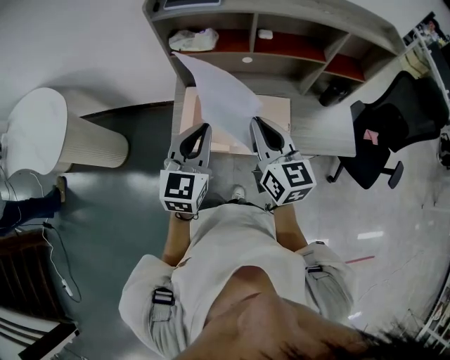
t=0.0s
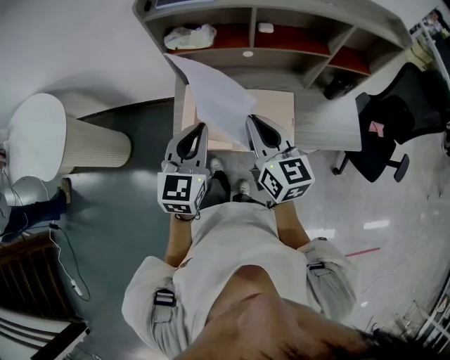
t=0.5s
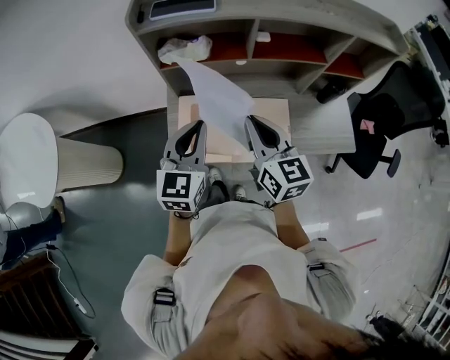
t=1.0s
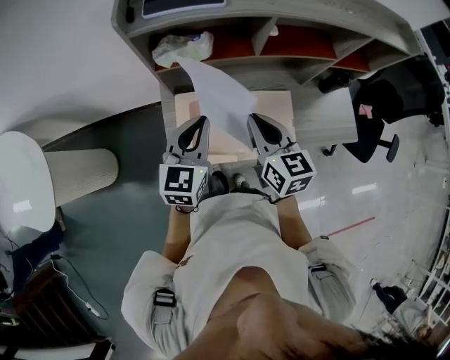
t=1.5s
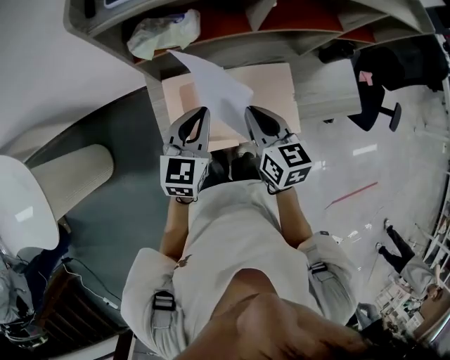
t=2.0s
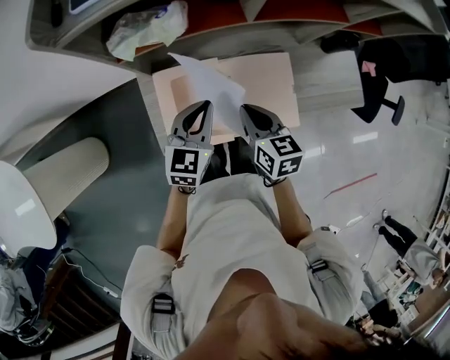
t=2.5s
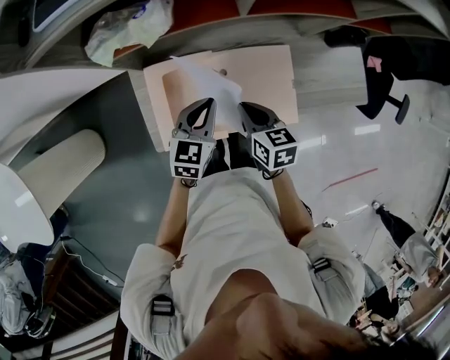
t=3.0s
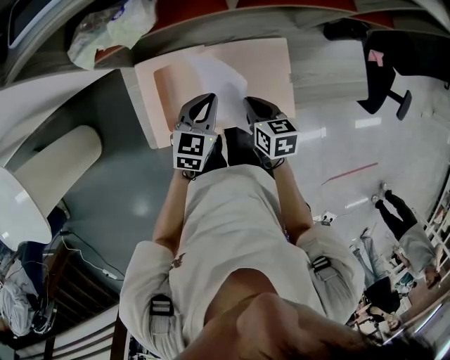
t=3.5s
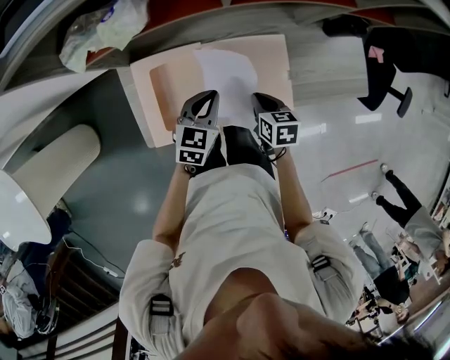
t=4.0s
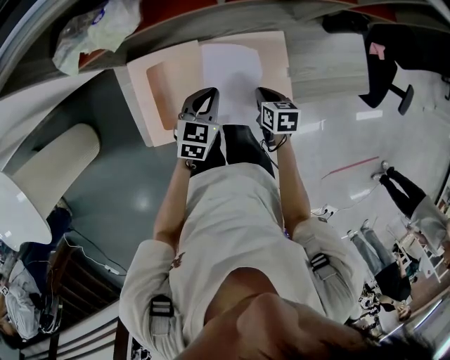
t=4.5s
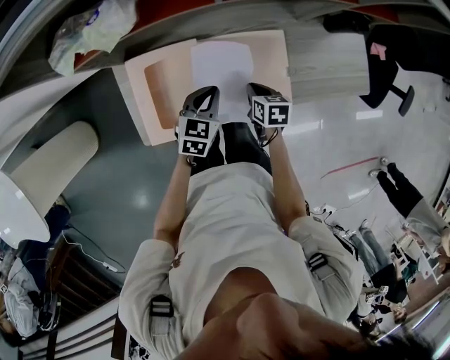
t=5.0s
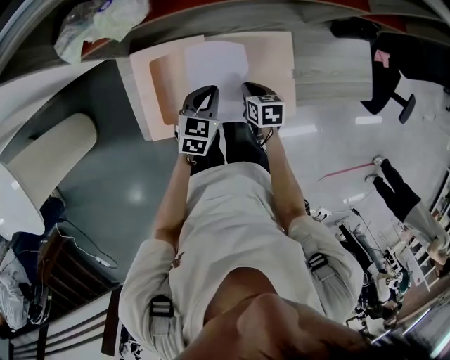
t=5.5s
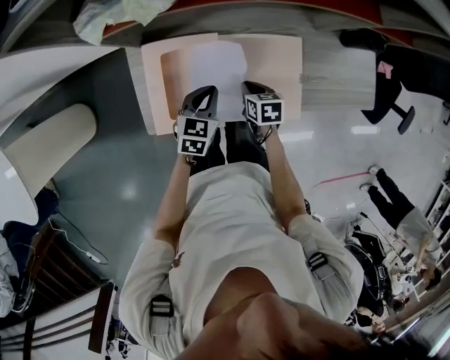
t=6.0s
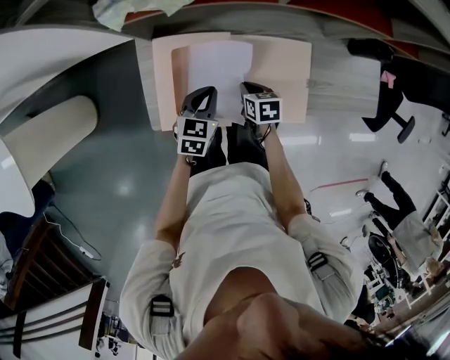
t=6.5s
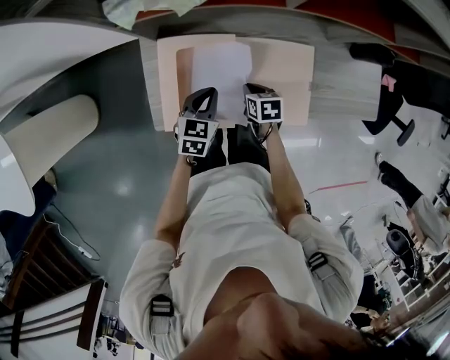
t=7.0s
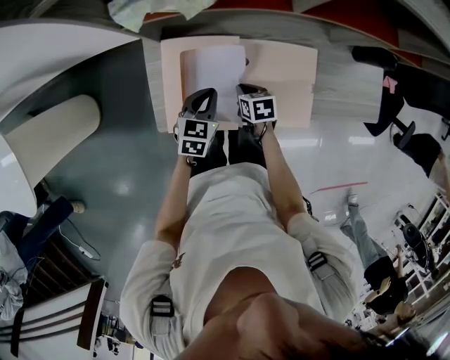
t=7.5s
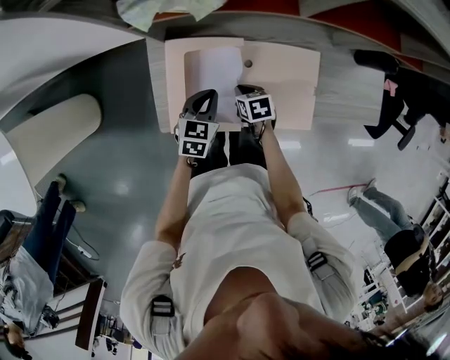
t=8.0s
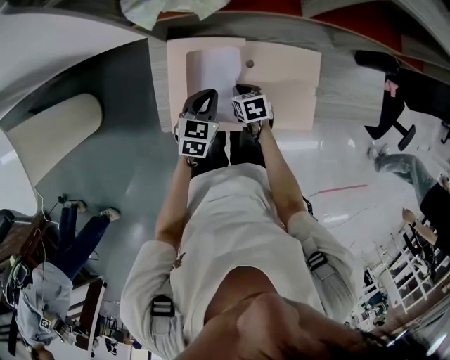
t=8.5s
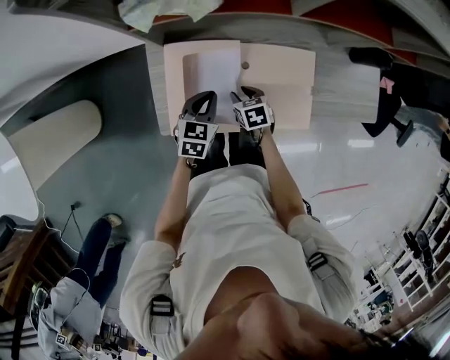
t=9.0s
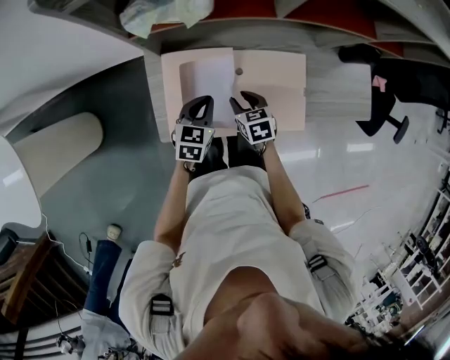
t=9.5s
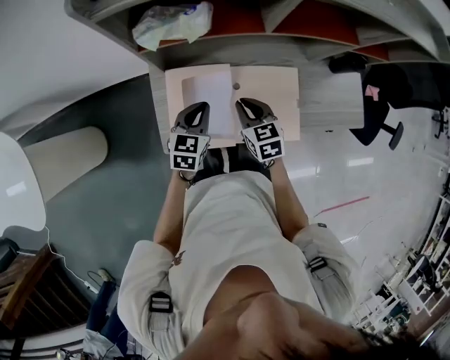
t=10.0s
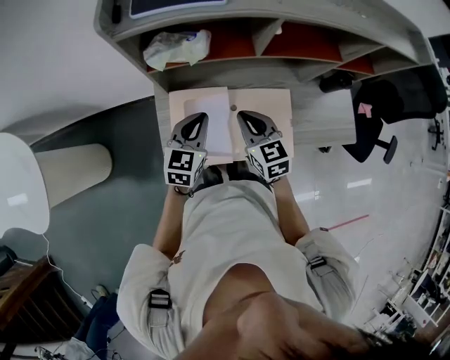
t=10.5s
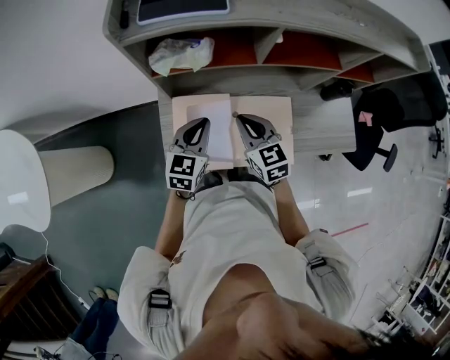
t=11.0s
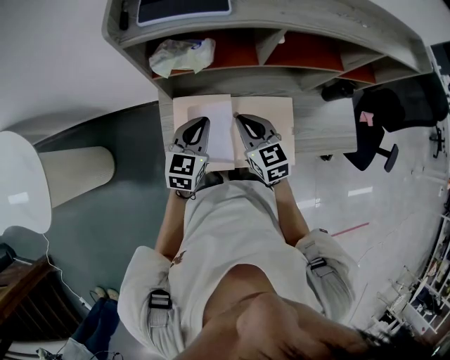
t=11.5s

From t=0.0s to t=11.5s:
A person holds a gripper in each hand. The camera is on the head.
From t=0.0s to t=2.0s: The right gripper travels downward, forward and to the left by about 20 cm, and swivels some 20 degrees, while the left gripper heads forward and downward, covering roughly 25 cm, and turns by approximately 20 degrees.
From t=2.0s to t=4.0s: The two grippers go about 25 cm downward and to the right. The right gripper turns by approximately 30 degrees.
From t=4.0s to t=6.0s: The left gripper shifts by roughly 5 cm, while the right gripper goes some 10 cm downward and to the left.
From t=6.0s to t=7.5s: Both grippers travel together to the left, roughly 5 cm.
From t=7.5s to t=9.5s: The right gripper heads upward, covering about 5 cm, and opens its fingers.
From t=9.5s to t=11.5s: The two grippers go some 20 cm upward. The right gripper swivels about 30 degrees, and closes up.

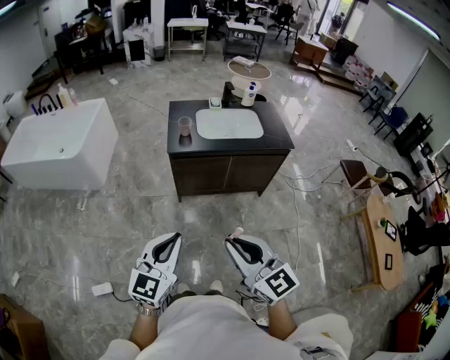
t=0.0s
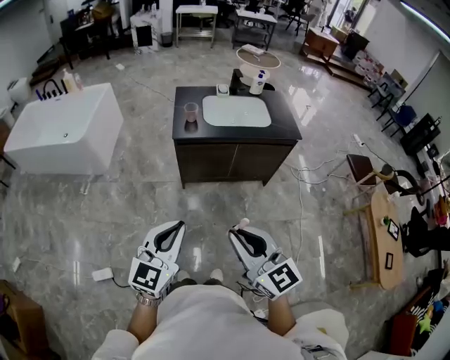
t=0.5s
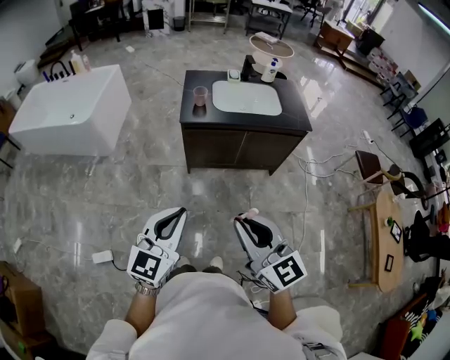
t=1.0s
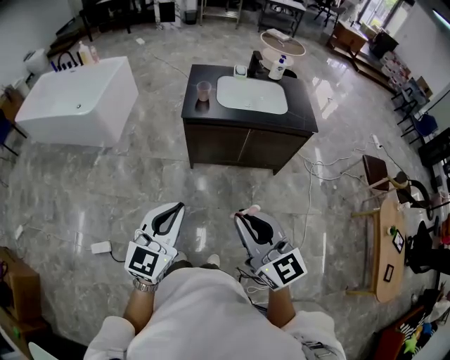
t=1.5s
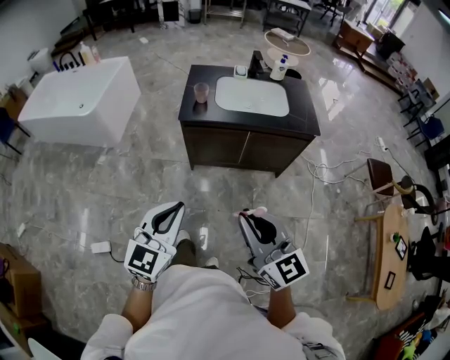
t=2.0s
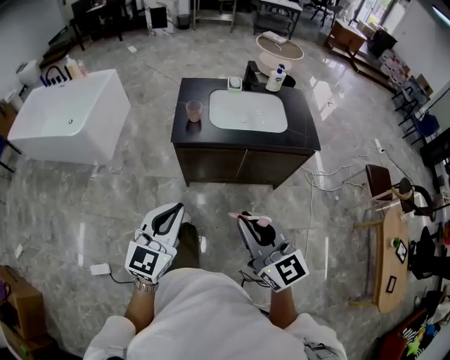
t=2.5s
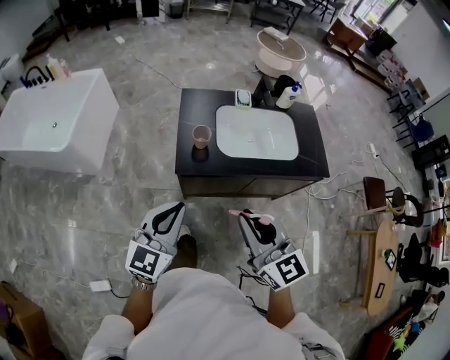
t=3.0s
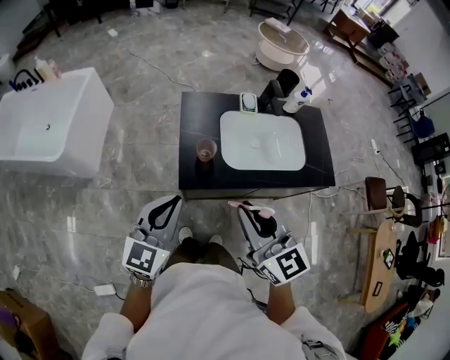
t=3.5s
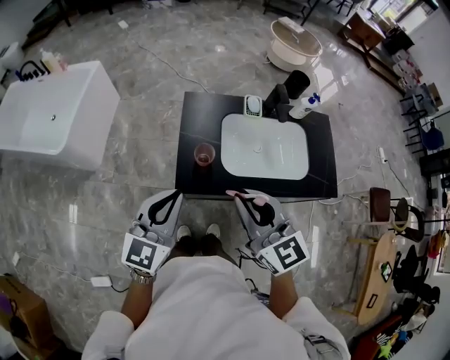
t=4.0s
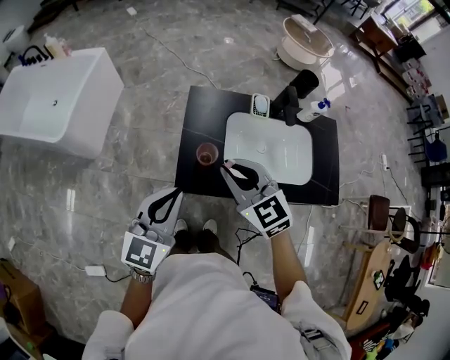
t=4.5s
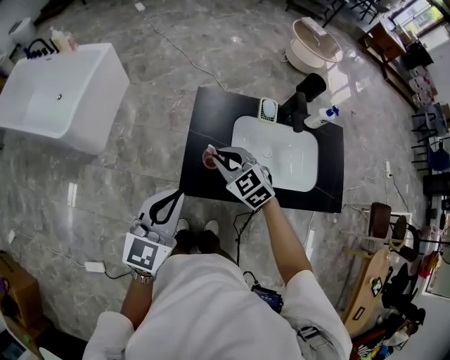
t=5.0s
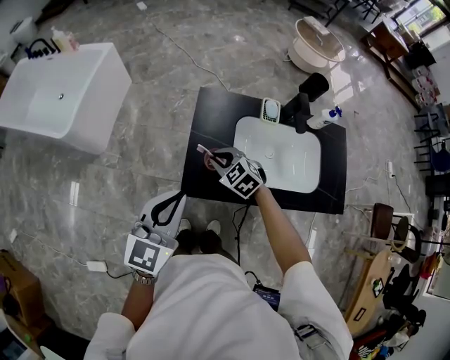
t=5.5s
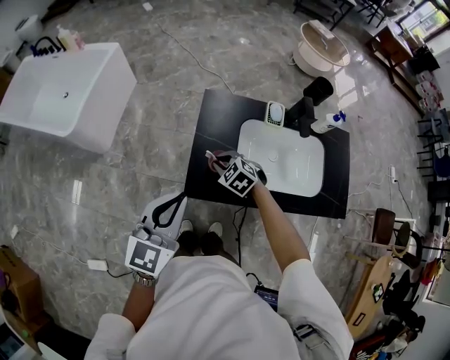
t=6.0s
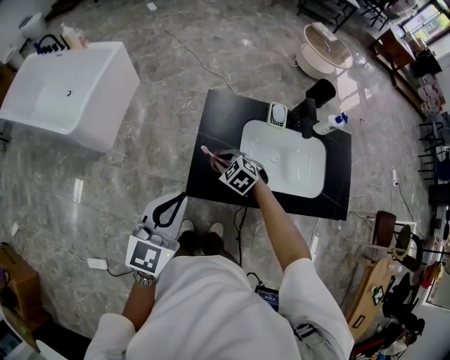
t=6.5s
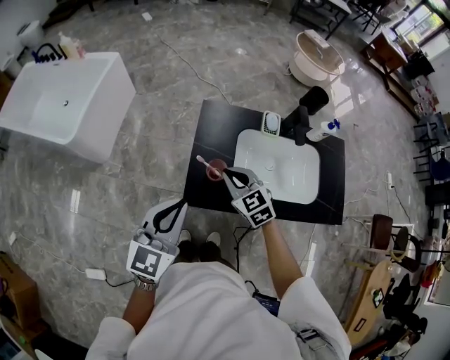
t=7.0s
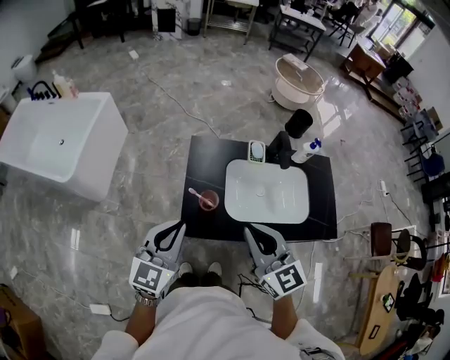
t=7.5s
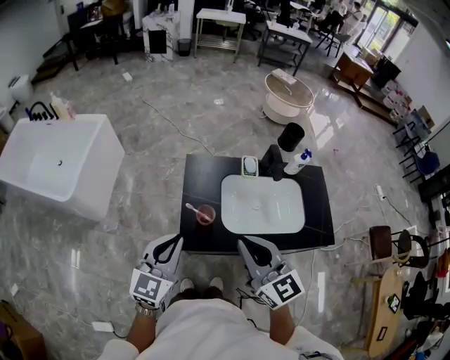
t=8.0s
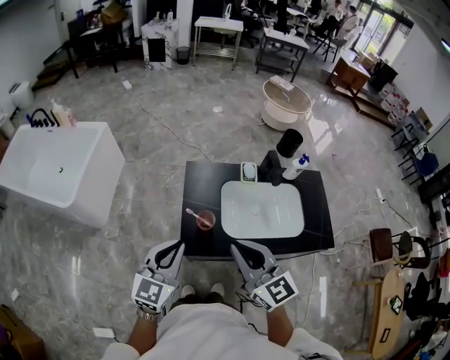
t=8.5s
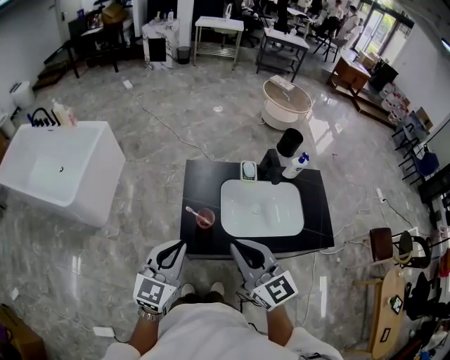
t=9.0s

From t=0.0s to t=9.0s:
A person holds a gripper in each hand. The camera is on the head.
From t=0.0s to t=2.0s: The grippers both shift to the right and forward by approximately 10 cm.
From t=2.0s to t=4.5s: Both grippers are carried forward, roughly 60 cm. The right gripper rotates about 30 degrees.
From t=4.5s to t=7.0s: The right gripper shifts roughly 15 cm downward and forward.
From t=7.0s to t=9.0s: The right gripper moves upward and backward, some 25 cm, and turns by about 30 degrees.

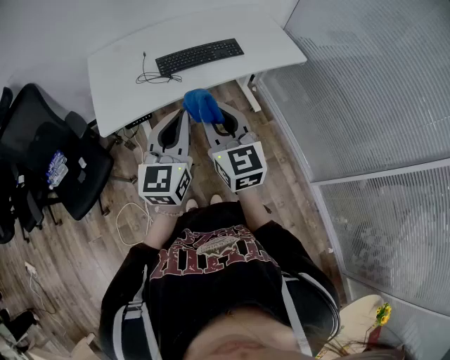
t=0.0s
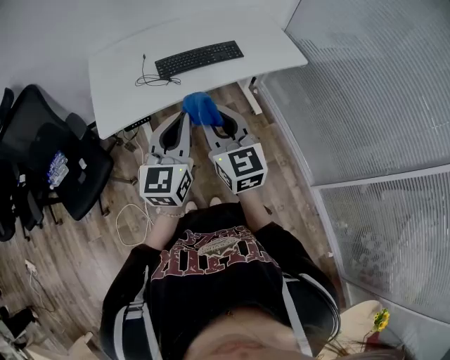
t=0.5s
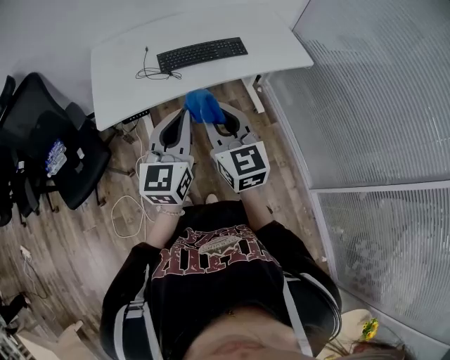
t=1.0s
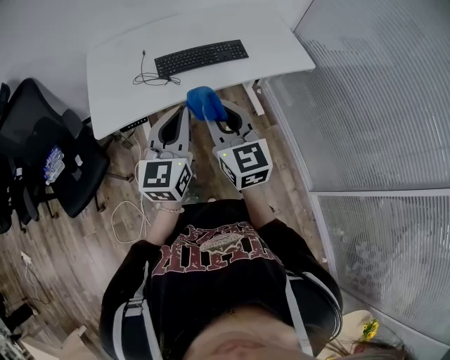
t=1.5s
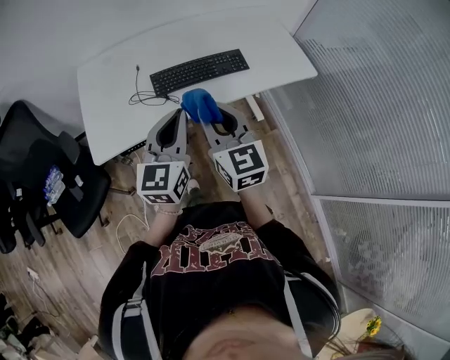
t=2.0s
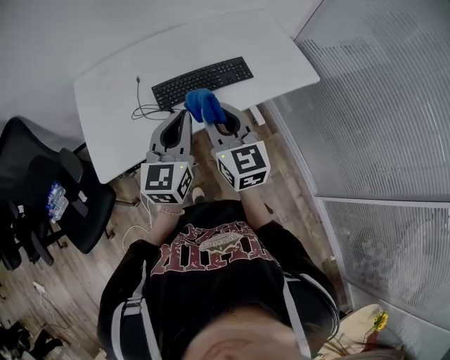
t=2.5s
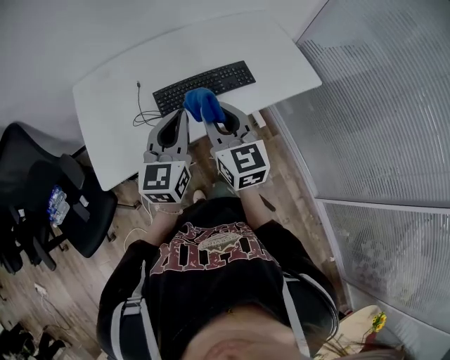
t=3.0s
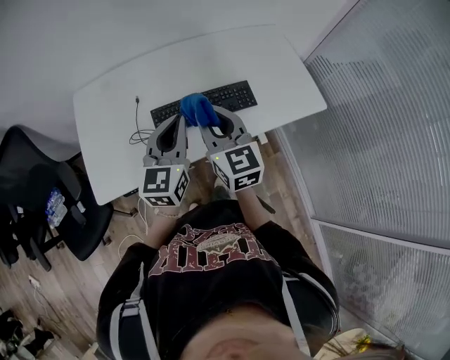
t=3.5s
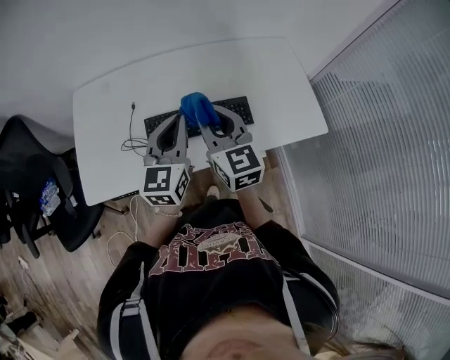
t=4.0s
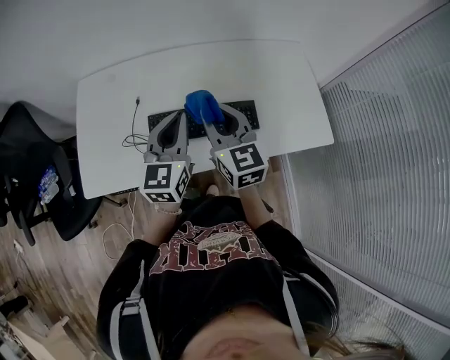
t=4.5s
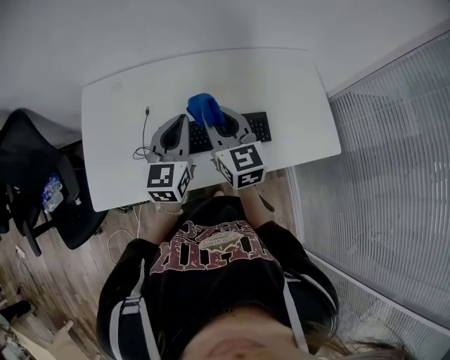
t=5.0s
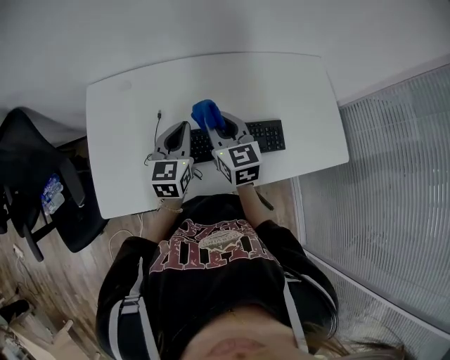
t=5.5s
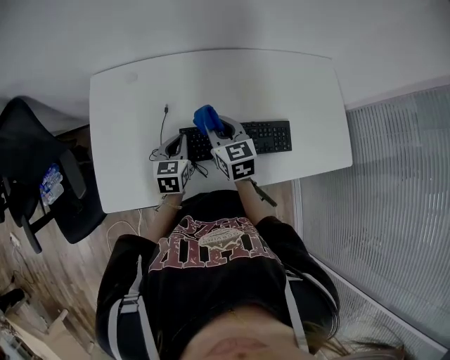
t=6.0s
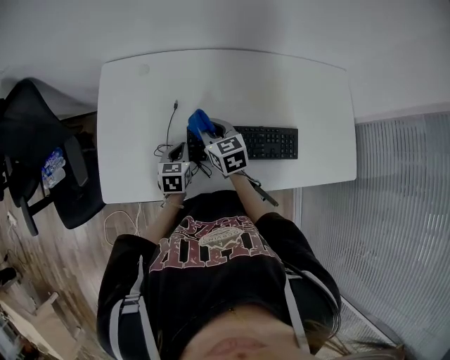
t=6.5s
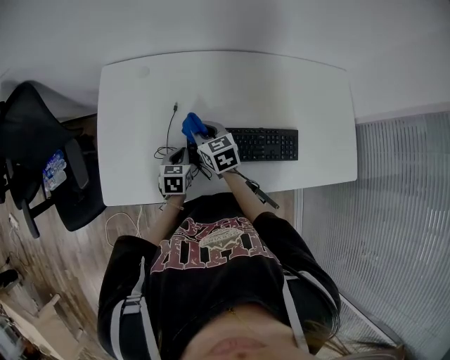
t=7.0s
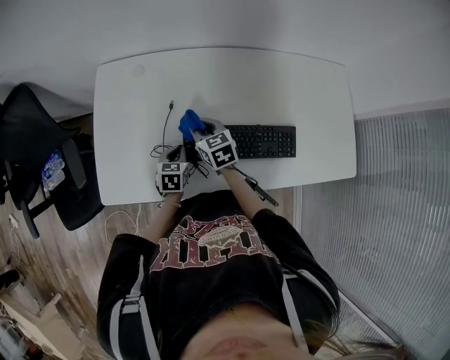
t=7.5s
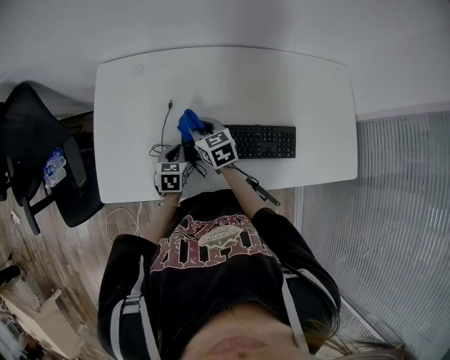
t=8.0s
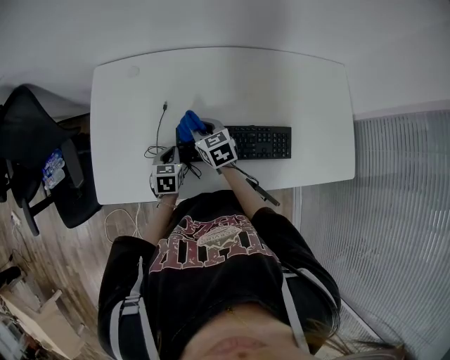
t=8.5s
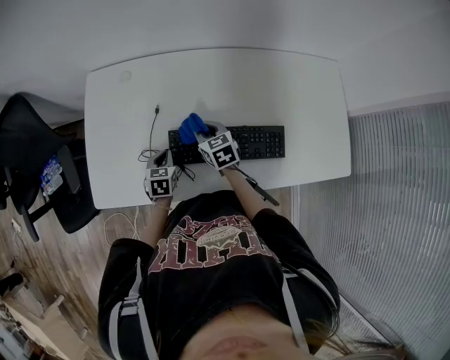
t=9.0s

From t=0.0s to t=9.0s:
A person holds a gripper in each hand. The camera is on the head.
From t=0.0s to t=2.0s: Both grippers move forward, approximately 15 cm.
From t=2.0s to t=4.5s: Both grippers travel together forward, some 30 cm.
From t=4.5s to t=7.0s: The right gripper is displaced downward, to the left and forward by some 30 cm, and swivels some 30 degrees. The left gripper heads downward and to the left, covering approximately 35 cm, and tips its fingers downward by some 40 degrees.
From t=7.0s to t=9.0s: The right gripper shifts about 5 cm to the right.
